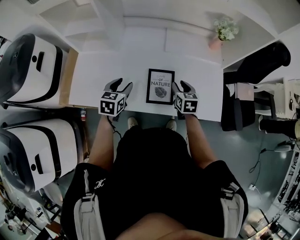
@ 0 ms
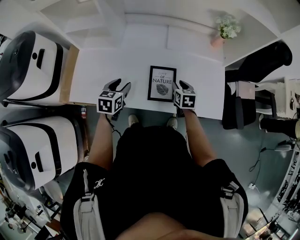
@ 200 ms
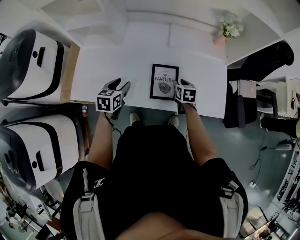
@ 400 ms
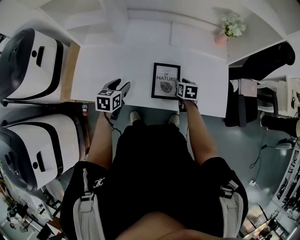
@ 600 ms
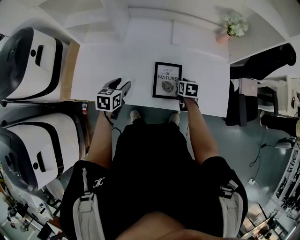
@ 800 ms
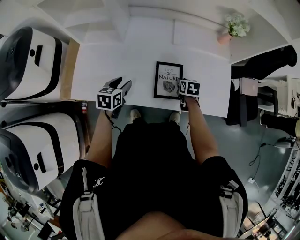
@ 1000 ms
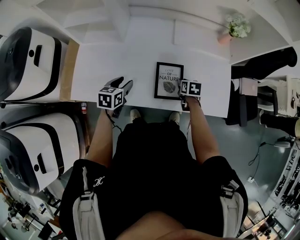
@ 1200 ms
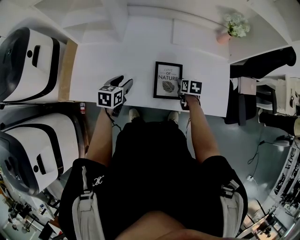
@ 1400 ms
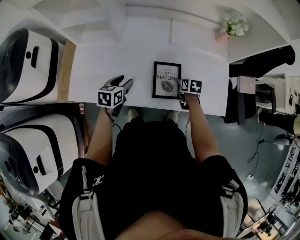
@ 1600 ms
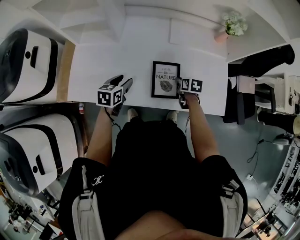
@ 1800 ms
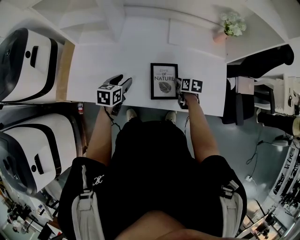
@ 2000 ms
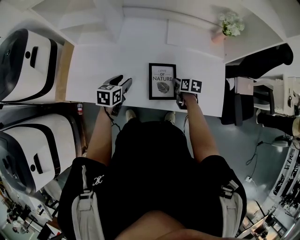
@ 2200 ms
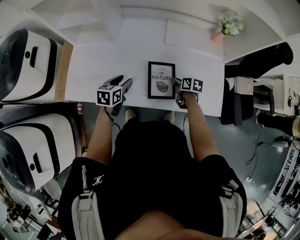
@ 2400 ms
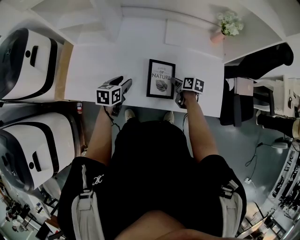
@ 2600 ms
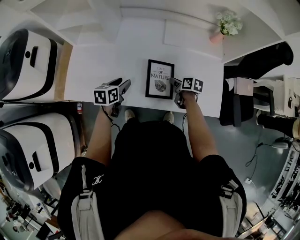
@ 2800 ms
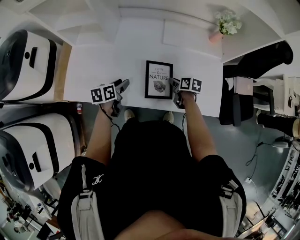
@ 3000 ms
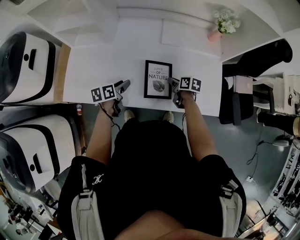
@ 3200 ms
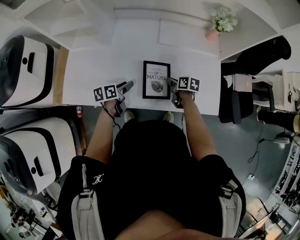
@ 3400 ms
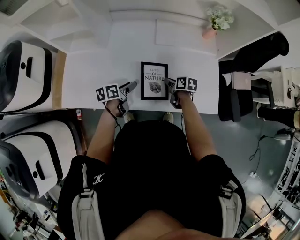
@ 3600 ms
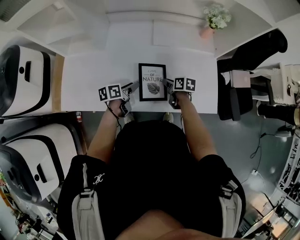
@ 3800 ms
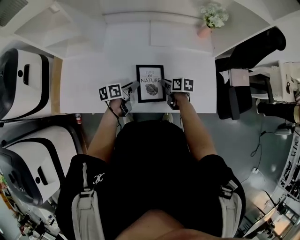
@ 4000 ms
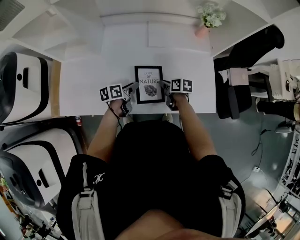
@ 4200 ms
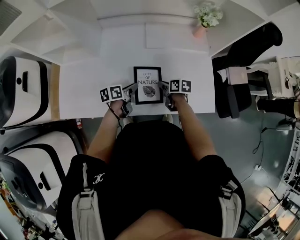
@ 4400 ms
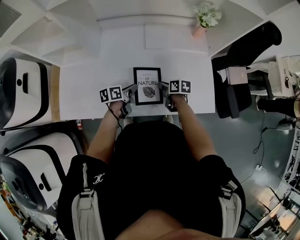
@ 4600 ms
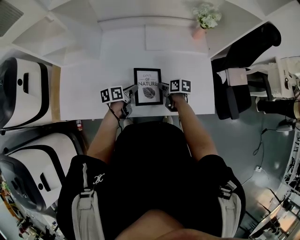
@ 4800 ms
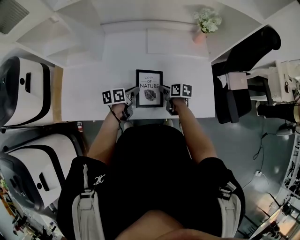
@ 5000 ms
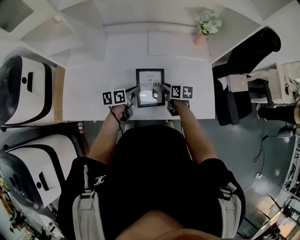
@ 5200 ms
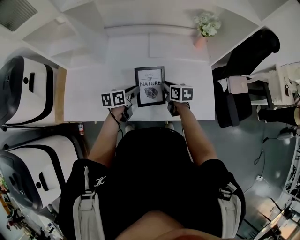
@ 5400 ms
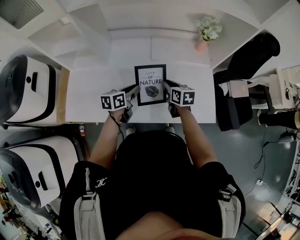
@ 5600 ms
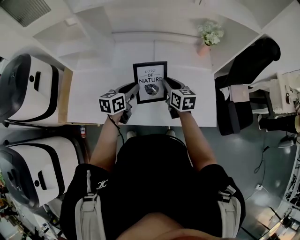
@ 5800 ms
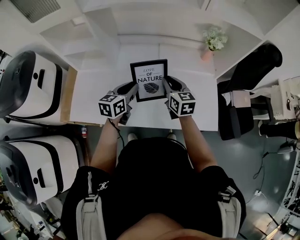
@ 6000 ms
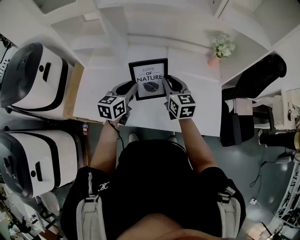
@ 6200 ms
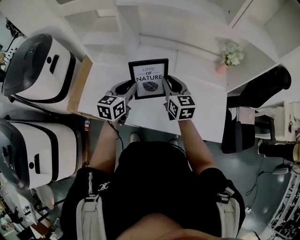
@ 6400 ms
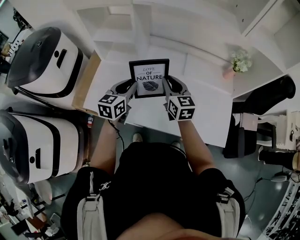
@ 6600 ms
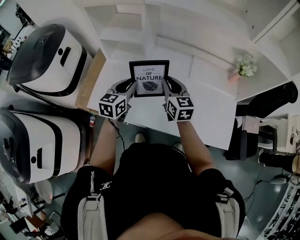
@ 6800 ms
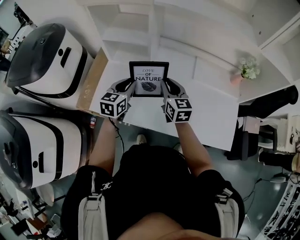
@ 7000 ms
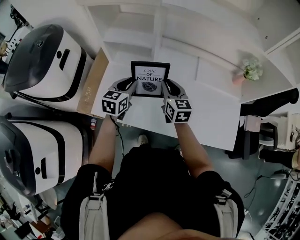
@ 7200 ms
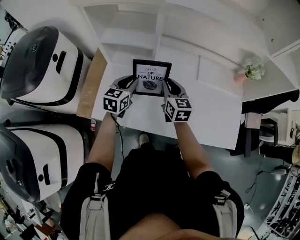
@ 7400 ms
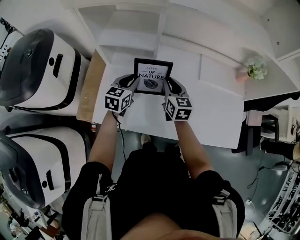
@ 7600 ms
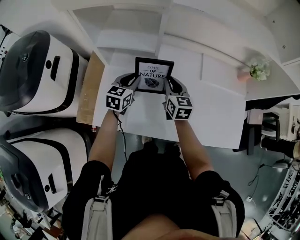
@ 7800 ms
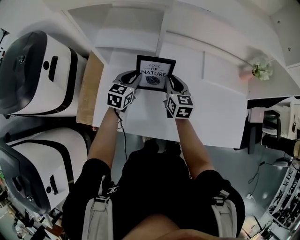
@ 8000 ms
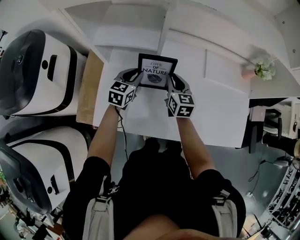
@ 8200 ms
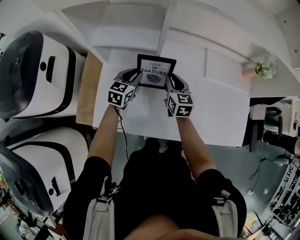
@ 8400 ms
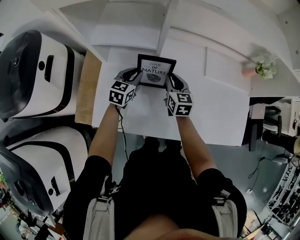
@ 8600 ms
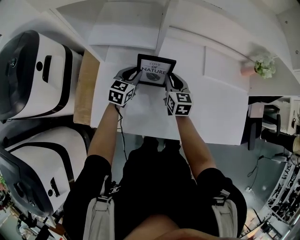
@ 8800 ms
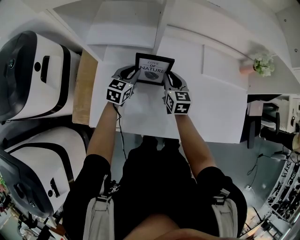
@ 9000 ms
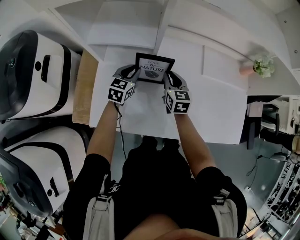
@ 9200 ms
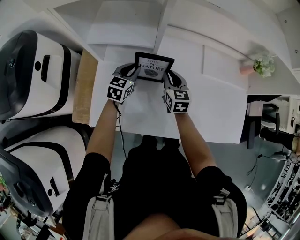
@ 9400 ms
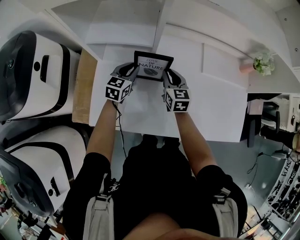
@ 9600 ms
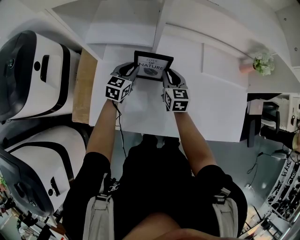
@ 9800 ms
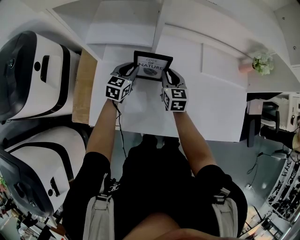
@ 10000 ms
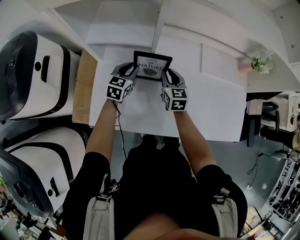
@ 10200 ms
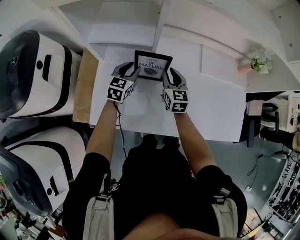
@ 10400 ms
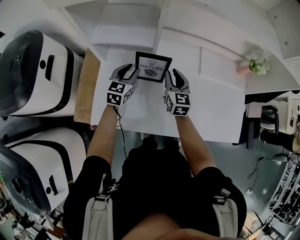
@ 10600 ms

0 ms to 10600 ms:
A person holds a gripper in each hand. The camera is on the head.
0 ms to 1600 ms: The right gripper shifts some 10 cm downward, and rotates roughly 30 degrees. The left gripper travels downward by about 5 cm.
1600 ms to 3000 ms: The left gripper turns by approximately 20 degrees.
3000 ms to 4600 ms: The left gripper travels to the right by some 10 cm, and closes.
4600 ms to 6000 ms: The two grippers go about 20 cm upward. The left gripper turns by approximately 40 degrees. The right gripper swivels about 50 degrees.
6000 ms to 7600 ms: The left gripper goes roughly 25 cm to the left and forward. Meanwhile the right gripper goes some 25 cm to the left.
7600 ms to 9000 ms: The left gripper is displaced downward and forward by about 10 cm. Meanwhile the right gripper moves downward, some 5 cm.
9000 ms to 10600 ms: The left gripper ends up roughly 5 cm from where it was, while the right gripper is displaced upward by about 5 cm.

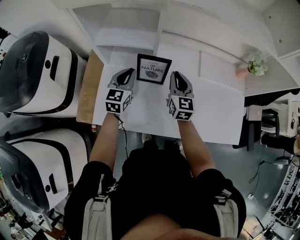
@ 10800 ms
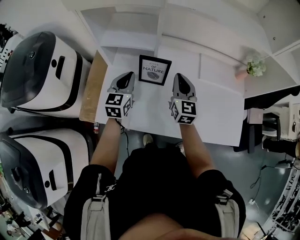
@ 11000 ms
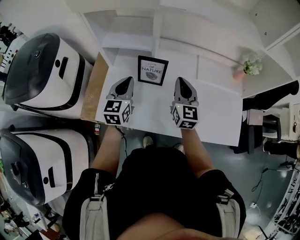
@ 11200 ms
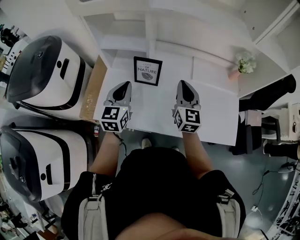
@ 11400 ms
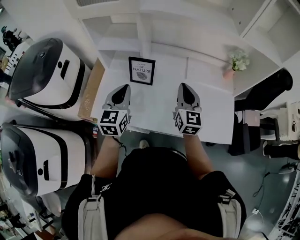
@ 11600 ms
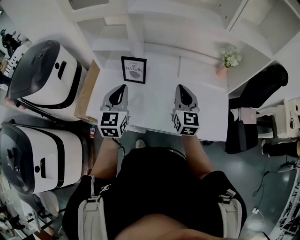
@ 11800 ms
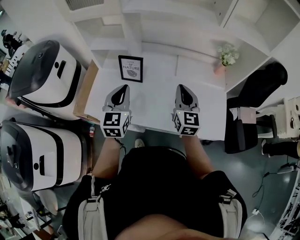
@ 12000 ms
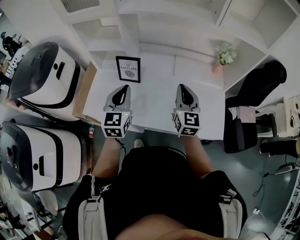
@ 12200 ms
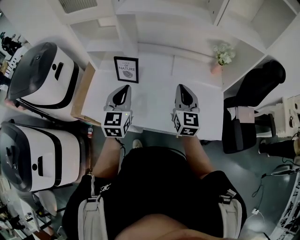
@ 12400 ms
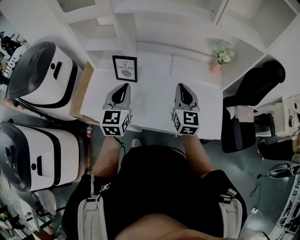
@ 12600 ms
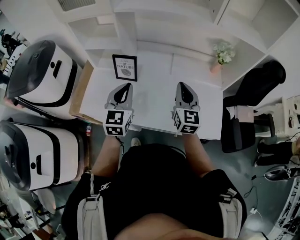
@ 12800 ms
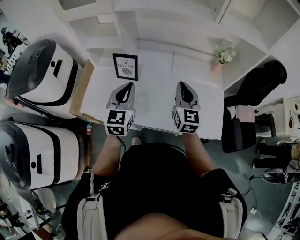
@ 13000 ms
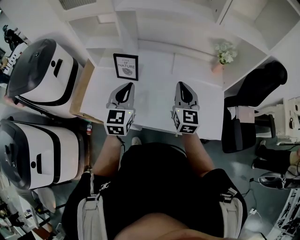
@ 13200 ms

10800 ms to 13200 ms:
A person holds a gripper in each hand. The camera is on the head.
10800 ms to 12000 ms: The left gripper travels backward, to the right and upward by roughly 30 cm. Meanwhile the right gripper is displaced to the right, backward and upward by about 25 cm.
12000 ms to 13200 ms: The grippers stay close to where they were, moving slightly.

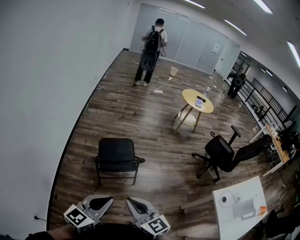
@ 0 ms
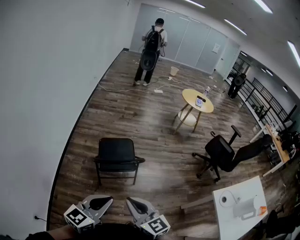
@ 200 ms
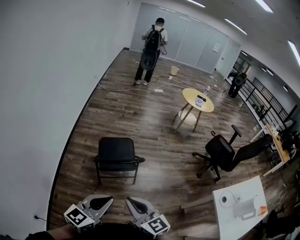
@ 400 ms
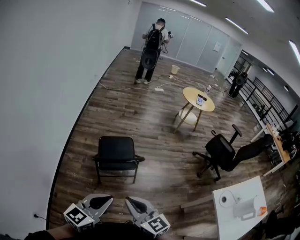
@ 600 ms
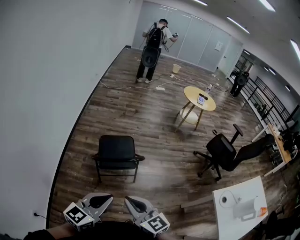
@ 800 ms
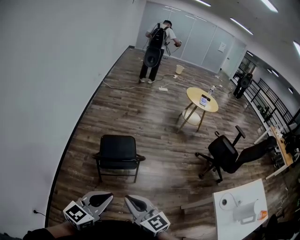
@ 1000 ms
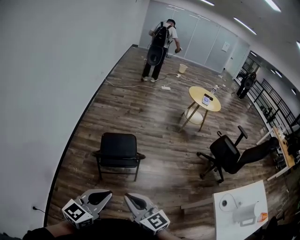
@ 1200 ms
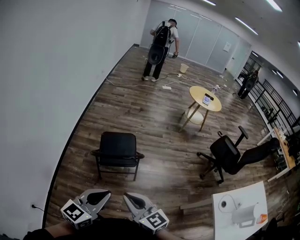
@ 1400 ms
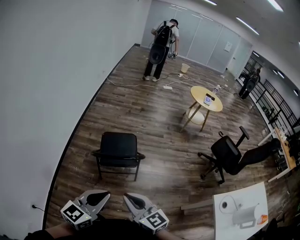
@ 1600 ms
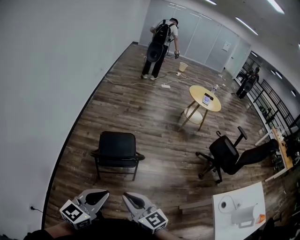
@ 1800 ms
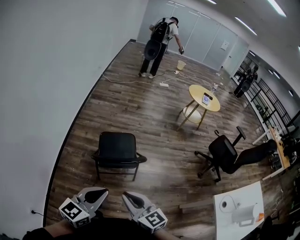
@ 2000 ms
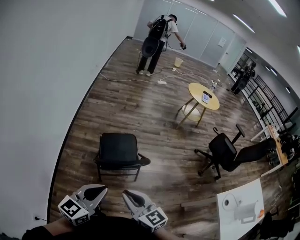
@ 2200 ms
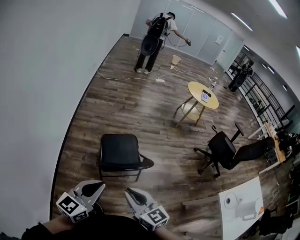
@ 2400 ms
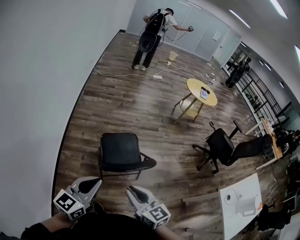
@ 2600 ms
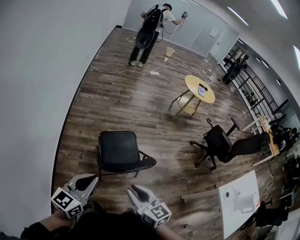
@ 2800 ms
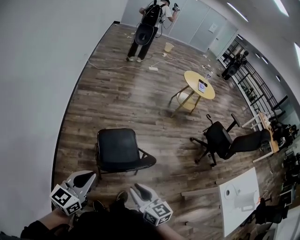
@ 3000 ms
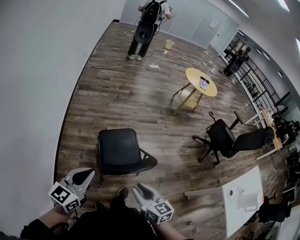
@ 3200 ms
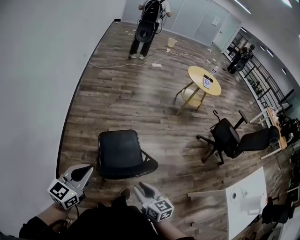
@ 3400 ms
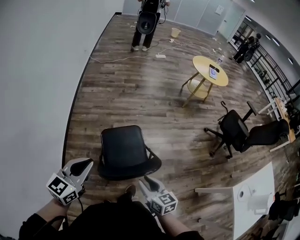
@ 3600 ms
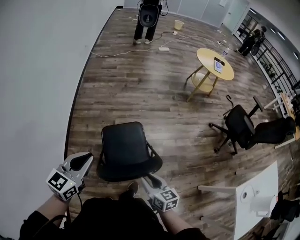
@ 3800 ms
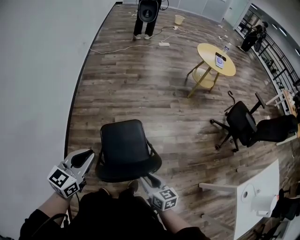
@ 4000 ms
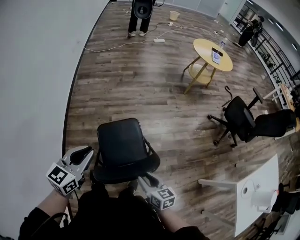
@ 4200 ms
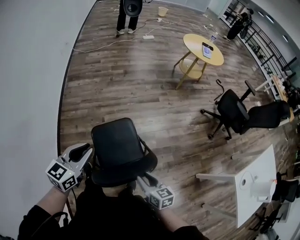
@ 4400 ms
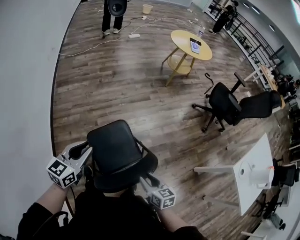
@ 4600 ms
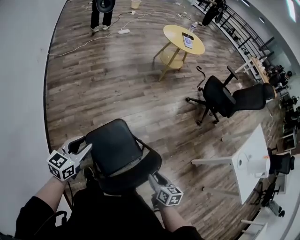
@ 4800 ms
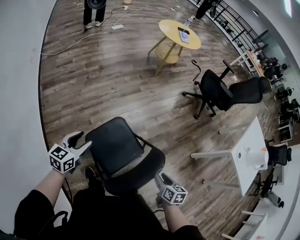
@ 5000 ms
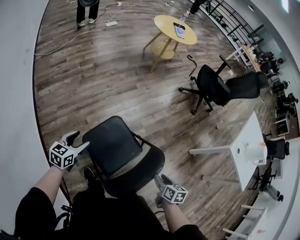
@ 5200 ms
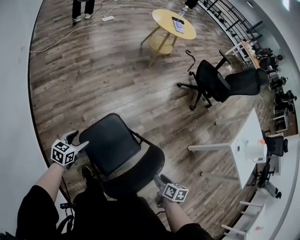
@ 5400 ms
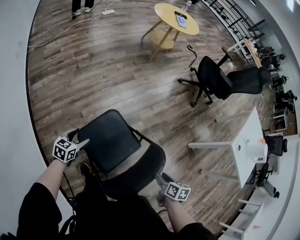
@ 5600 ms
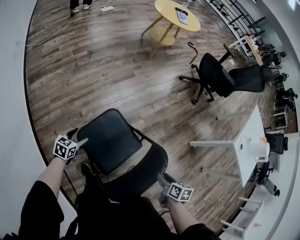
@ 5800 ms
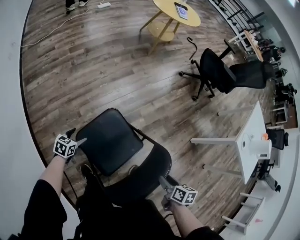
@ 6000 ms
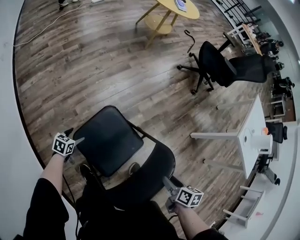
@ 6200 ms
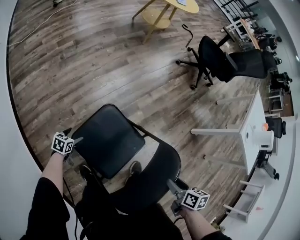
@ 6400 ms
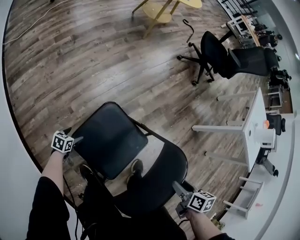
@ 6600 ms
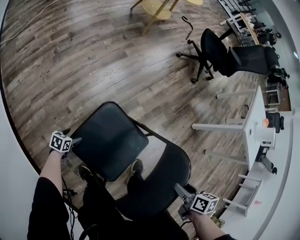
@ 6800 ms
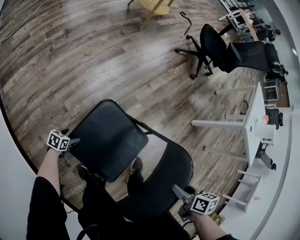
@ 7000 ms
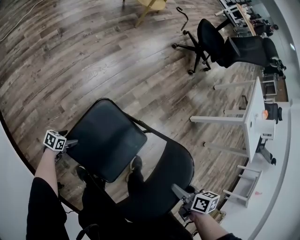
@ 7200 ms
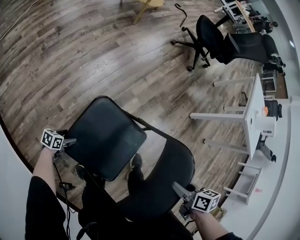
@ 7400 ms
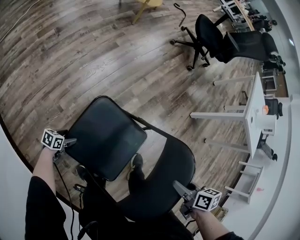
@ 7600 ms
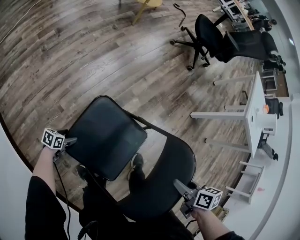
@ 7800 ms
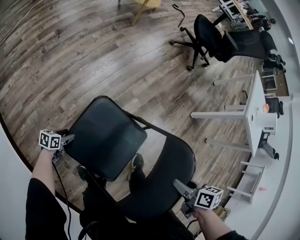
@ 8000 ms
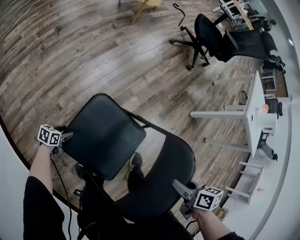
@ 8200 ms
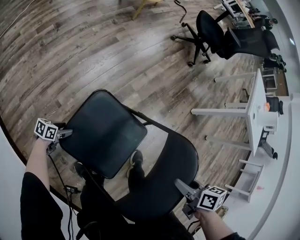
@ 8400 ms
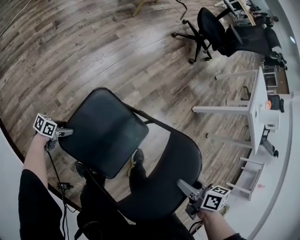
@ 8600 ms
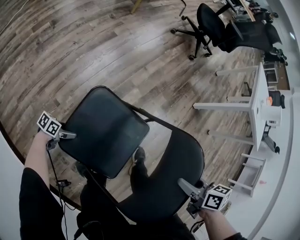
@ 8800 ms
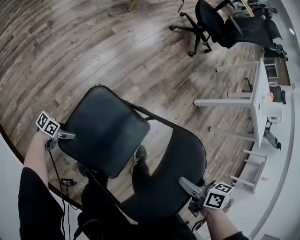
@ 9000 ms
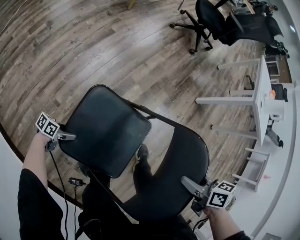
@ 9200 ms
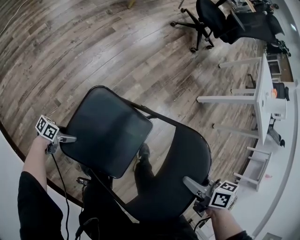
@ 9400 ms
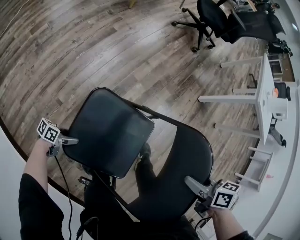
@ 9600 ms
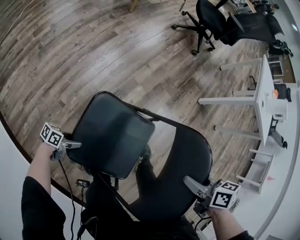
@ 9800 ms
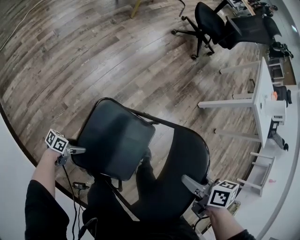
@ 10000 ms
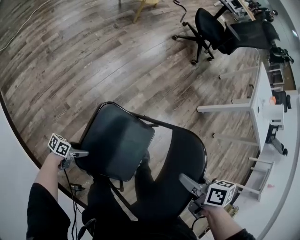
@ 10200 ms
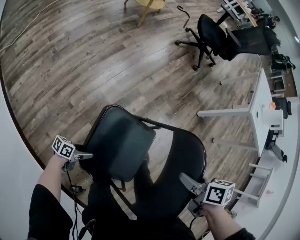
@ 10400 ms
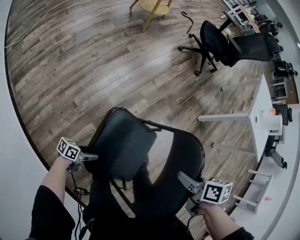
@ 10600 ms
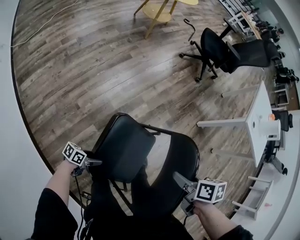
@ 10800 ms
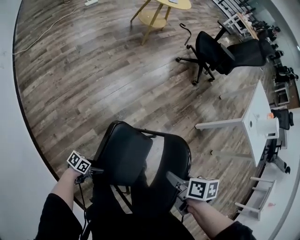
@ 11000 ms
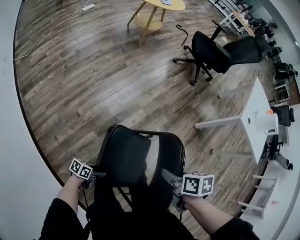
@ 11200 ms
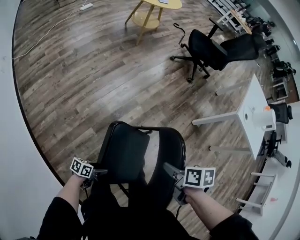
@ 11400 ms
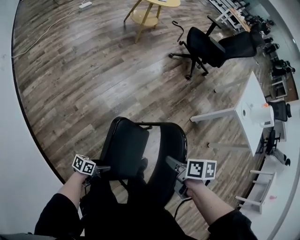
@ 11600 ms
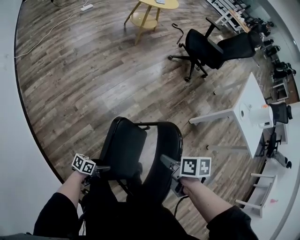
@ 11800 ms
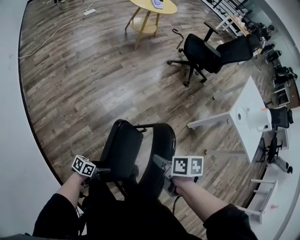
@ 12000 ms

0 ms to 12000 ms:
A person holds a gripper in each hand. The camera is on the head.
0 ms to 1600 ms: The right gripper ends up about 5 cm from where it was; the left gripper shifts by about 5 cm.
1600 ms to 3000 ms: The left gripper heads to the left and forward, covering about 30 cm. The right gripper goes roughly 20 cm forward and to the left, and turns by some 20 degrees.
3000 ms to 4400 ms: The left gripper travels forward by roughly 25 cm. The right gripper shifts approximately 20 cm downward, forward and to the right, and swivels some 20 degrees.
4400 ms to 6000 ms: The left gripper is displaced downward by about 40 cm, angles its fingers downward, by about 30 degrees, and opens up; the right gripper is displaced downward by about 10 cm, and turns by approximately 50 degrees.
6000 ms to 7600 ms: The left gripper travels downward by approximately 25 cm, and swivels approximately 30 degrees.
7600 ms to 9000 ms: The left gripper swivels approximately 20 degrees.
9000 ms to 10400 ms: The left gripper changes place by approximately 15 cm; the right gripper heads upward, covering approximately 5 cm.
10400 ms to 12000 ms: The left gripper shifts by approximately 25 cm. Meanwhile the right gripper ends up about 10 cm from where it was.
